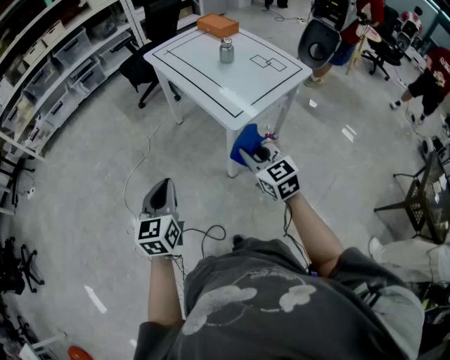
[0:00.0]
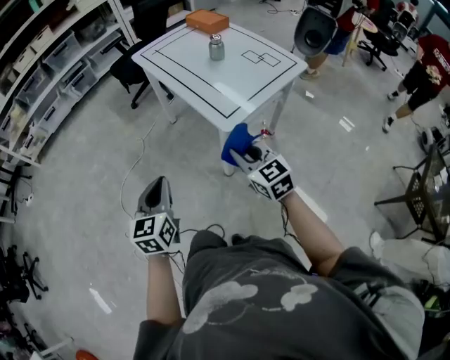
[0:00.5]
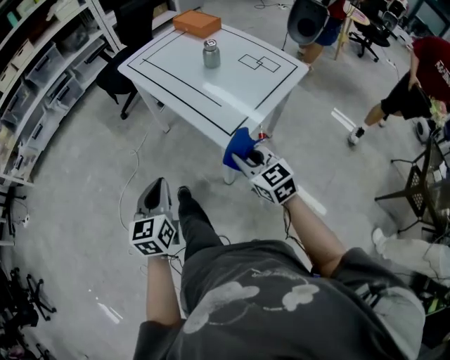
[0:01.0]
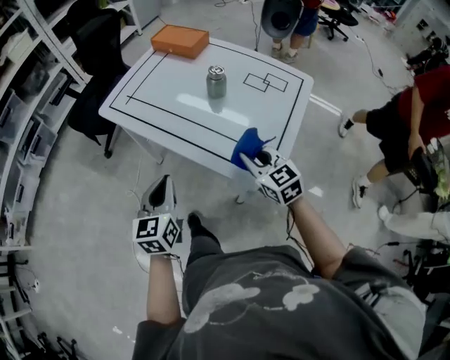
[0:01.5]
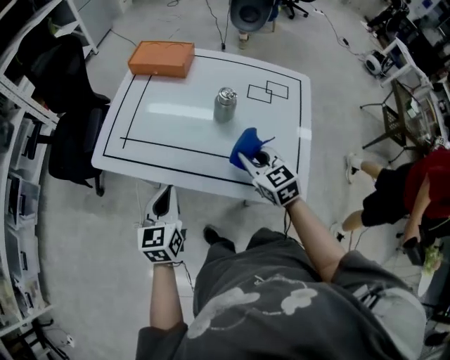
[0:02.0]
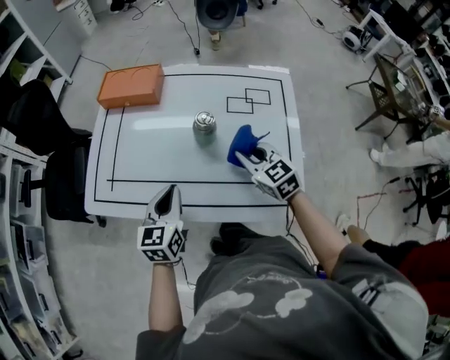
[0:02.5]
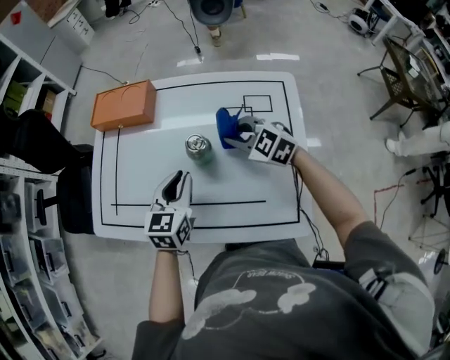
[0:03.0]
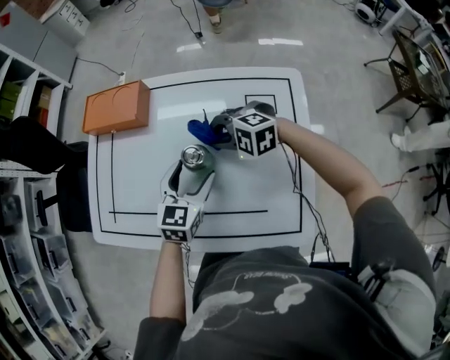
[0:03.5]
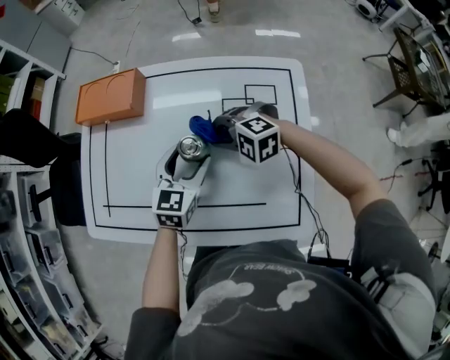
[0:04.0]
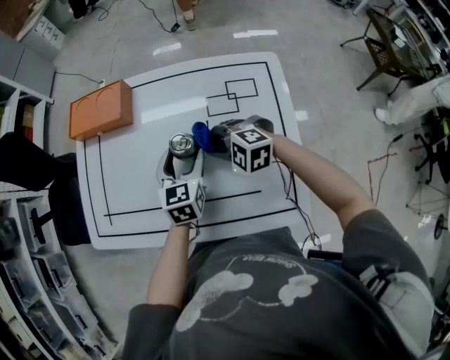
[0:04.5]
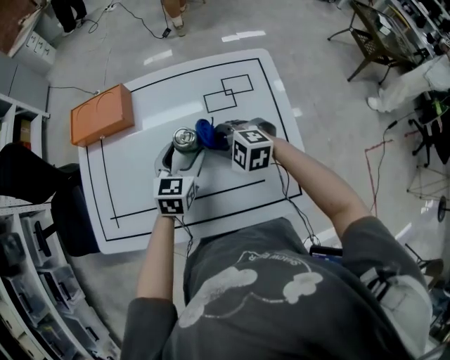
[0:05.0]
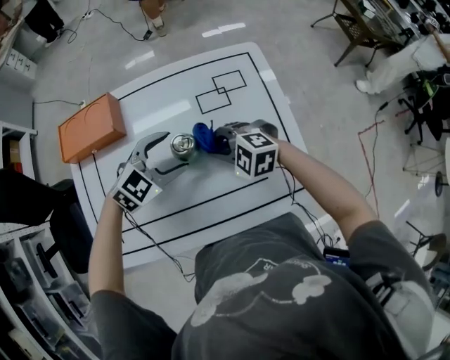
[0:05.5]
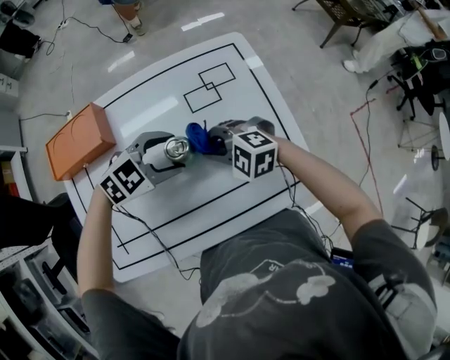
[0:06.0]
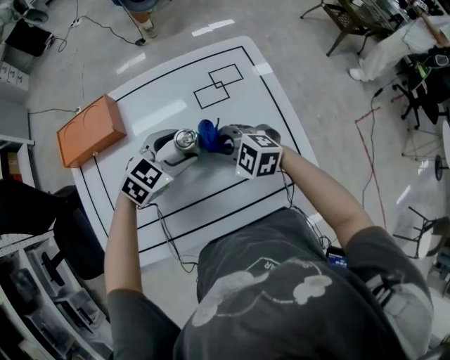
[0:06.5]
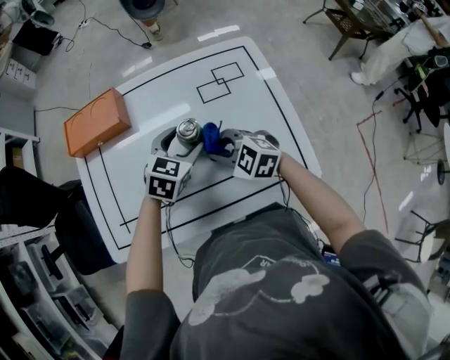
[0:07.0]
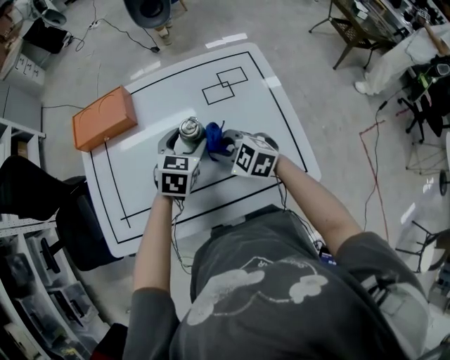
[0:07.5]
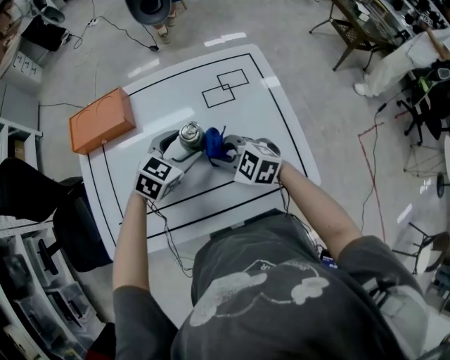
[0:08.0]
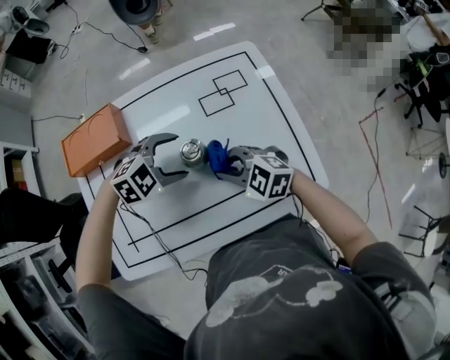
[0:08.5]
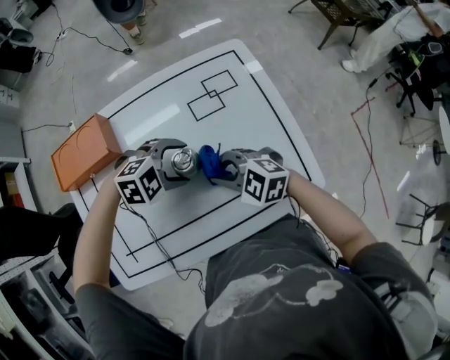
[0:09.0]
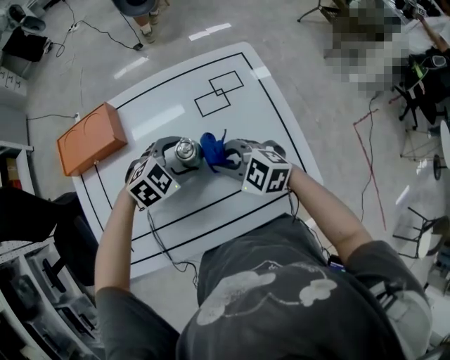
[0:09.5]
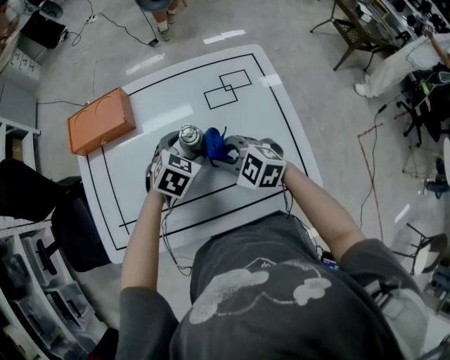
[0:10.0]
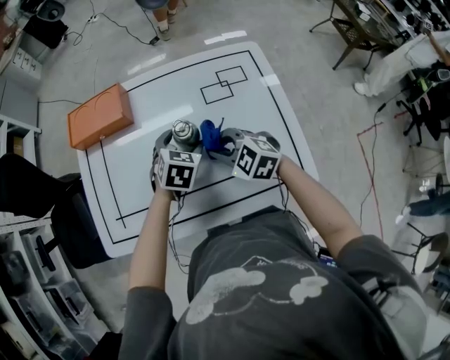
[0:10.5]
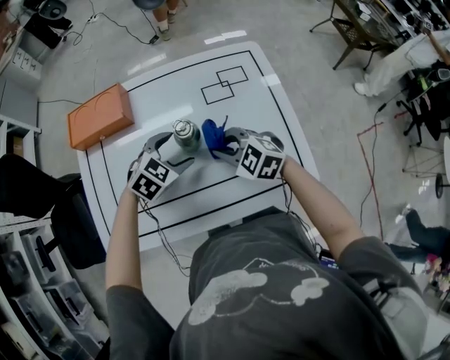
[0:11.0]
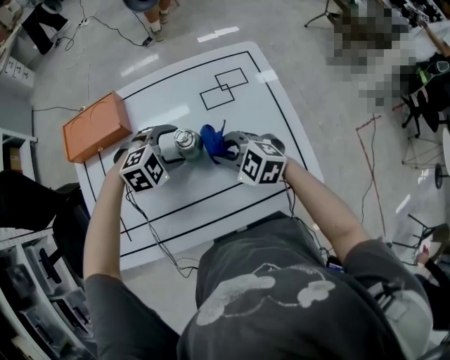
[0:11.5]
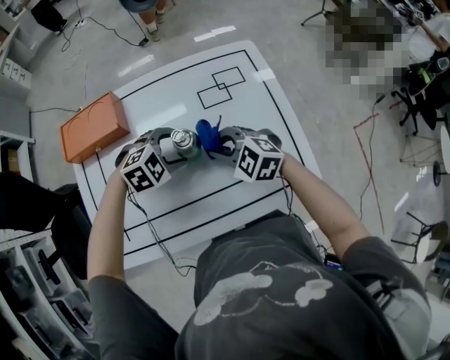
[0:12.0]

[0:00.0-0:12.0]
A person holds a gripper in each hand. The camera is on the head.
0:00.0 to 0:02.0: Both grippers are carried roughly 50 cm. The right gripper changes its angle by some 40 degrees, while the left gripper turns by about 40 degrees.
0:02.0 to 0:04.0: The left gripper heads to the right and forward, covering approximately 30 cm, turns by roughly 30 degrees, and opens, while the right gripper travels forward by approximately 15 cm, and rolls counterclockwise, seen from behind, by roughly 50 degrees.
0:04.0 to 0:06.0: The right gripper rotates approximately 30 degrees. The left gripper swivels about 70 degrees.
0:06.0 to 0:08.0: The left gripper rotates approximately 30 degrees, while the right gripper shifts by about 5 cm.
0:10.0 to 0:12.0: The left gripper turns by roughly 40 degrees.

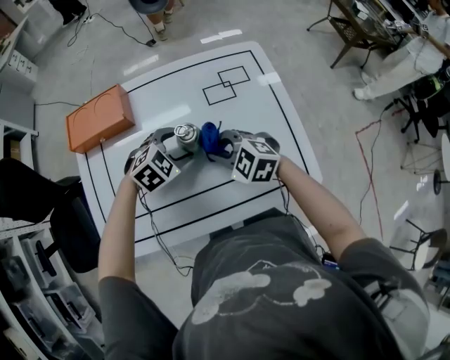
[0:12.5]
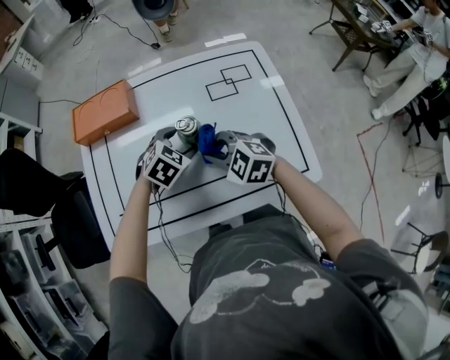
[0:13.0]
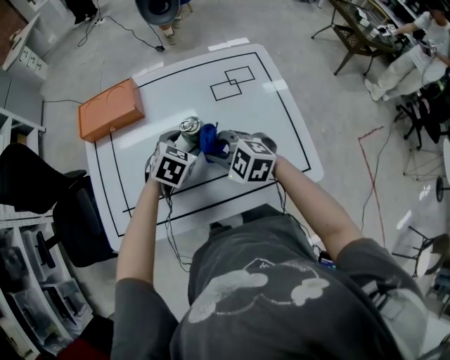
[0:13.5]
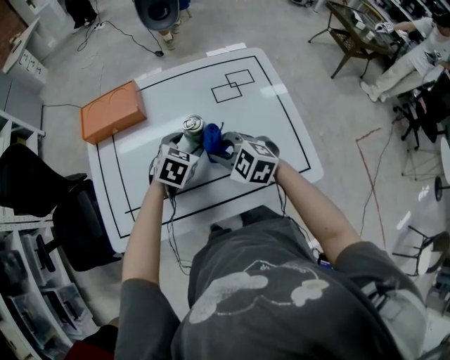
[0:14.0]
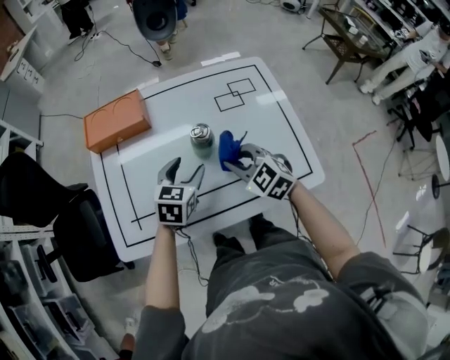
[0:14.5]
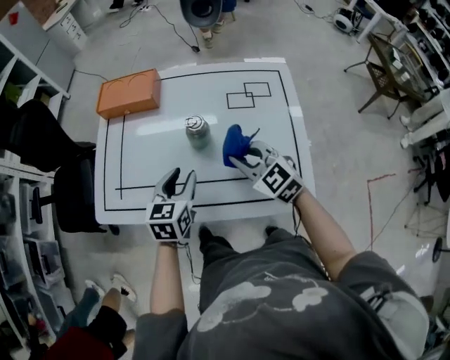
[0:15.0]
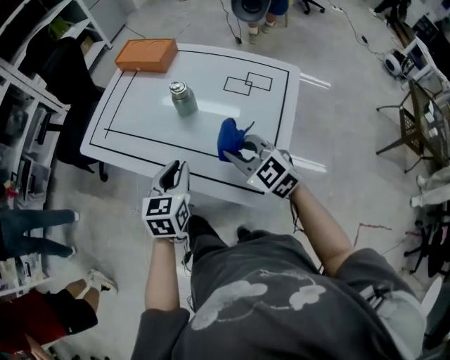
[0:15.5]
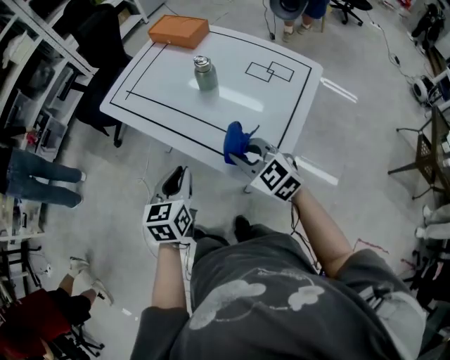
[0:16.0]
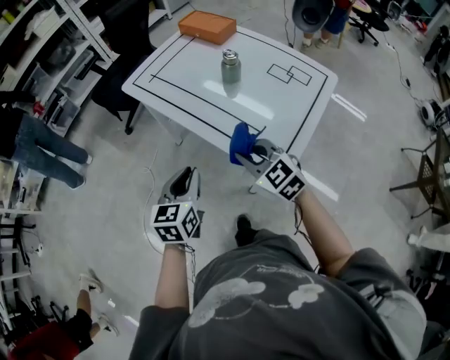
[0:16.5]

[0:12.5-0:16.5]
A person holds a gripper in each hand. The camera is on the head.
0:12.5 to 0:14.5: The right gripper ends up about 5 cm from where it was. The left gripper is displaced to the left and backward by some 10 cm, and swivels approximately 50 degrees.
0:14.5 to 0:16.5: The right gripper changes place by roughly 25 cm, and rotates approximately 50 degrees; the left gripper shifts by roughly 35 cm, rotates roughly 60 degrees, and closes its fingers.

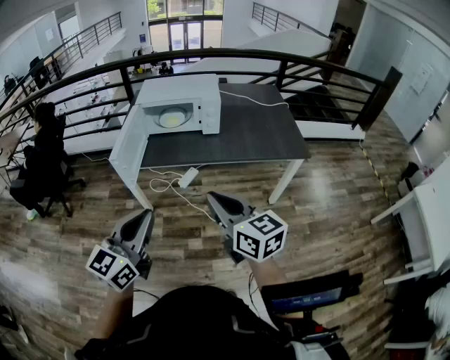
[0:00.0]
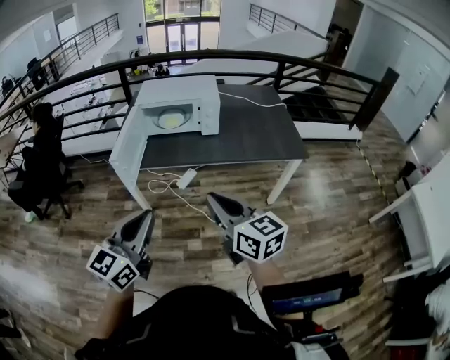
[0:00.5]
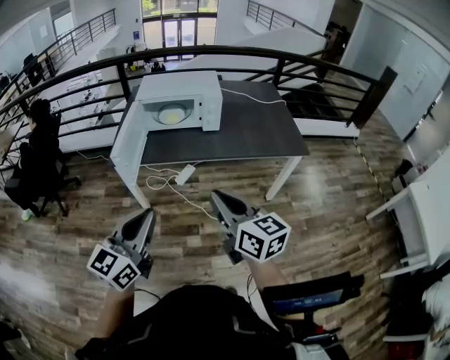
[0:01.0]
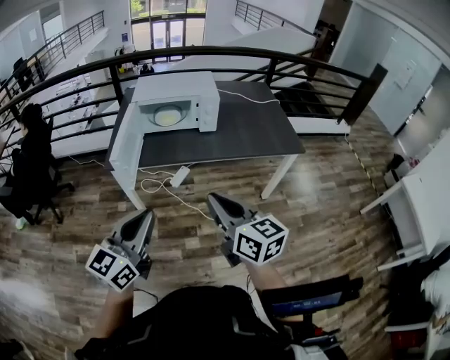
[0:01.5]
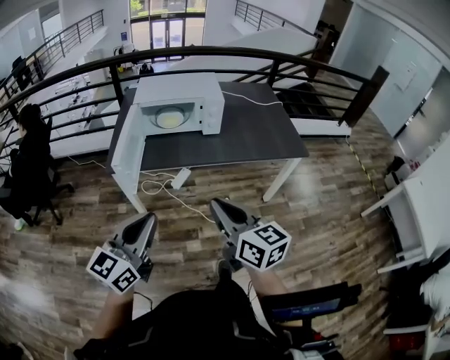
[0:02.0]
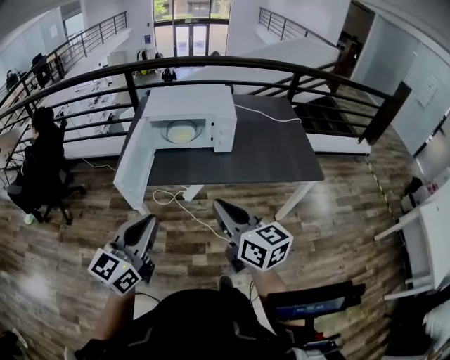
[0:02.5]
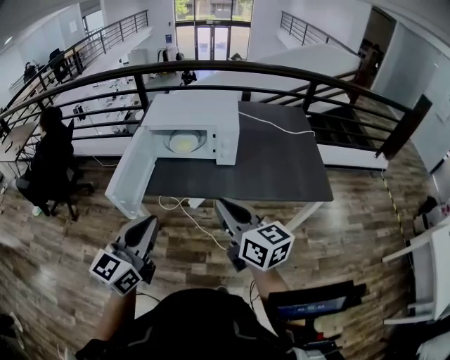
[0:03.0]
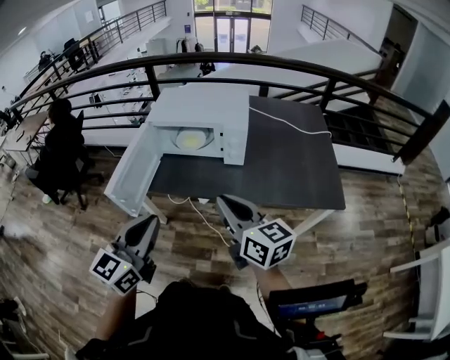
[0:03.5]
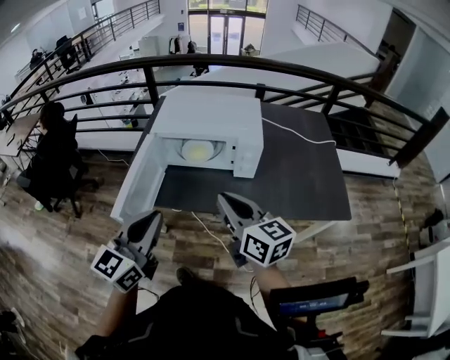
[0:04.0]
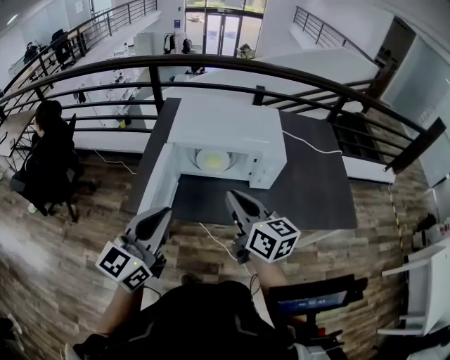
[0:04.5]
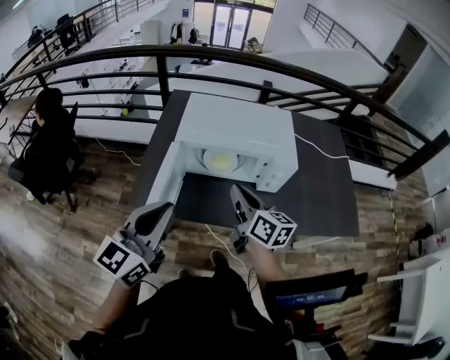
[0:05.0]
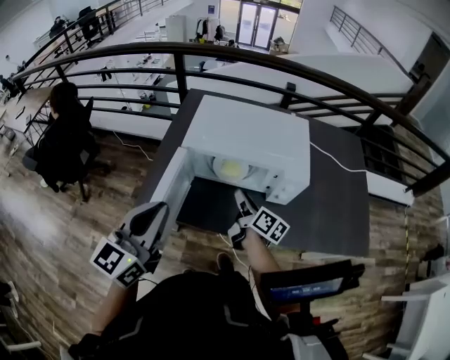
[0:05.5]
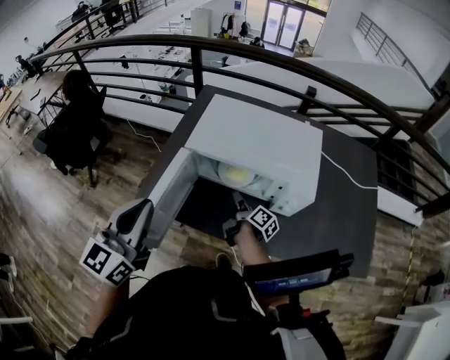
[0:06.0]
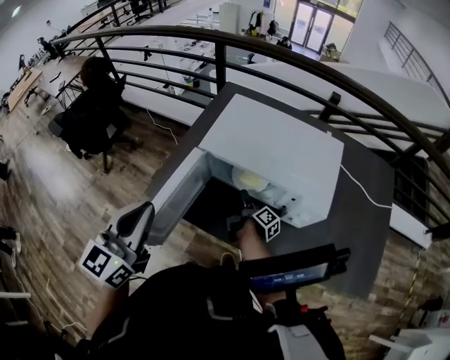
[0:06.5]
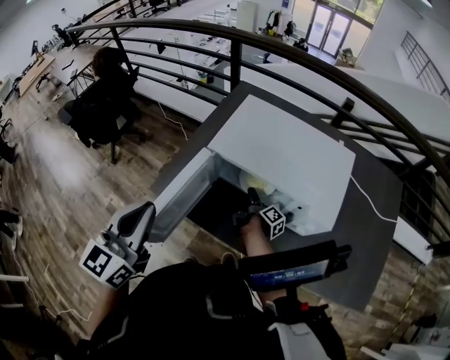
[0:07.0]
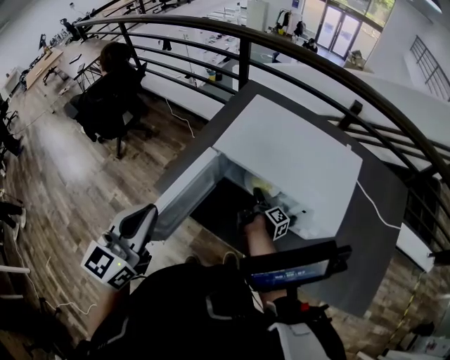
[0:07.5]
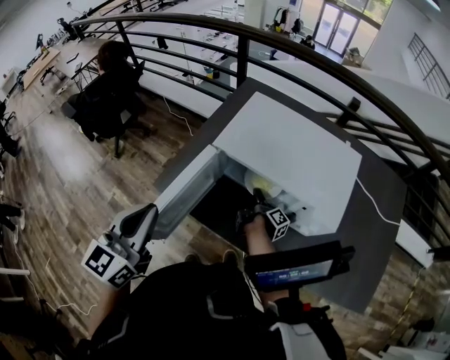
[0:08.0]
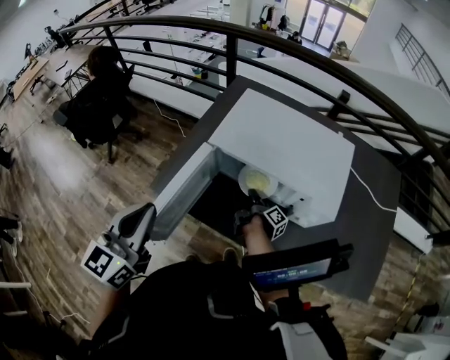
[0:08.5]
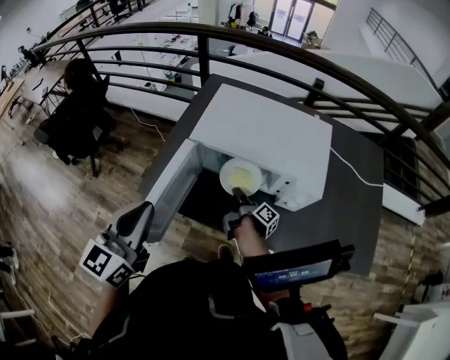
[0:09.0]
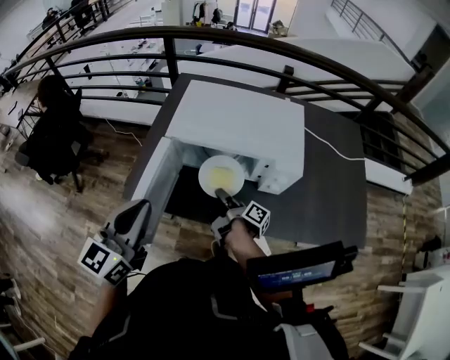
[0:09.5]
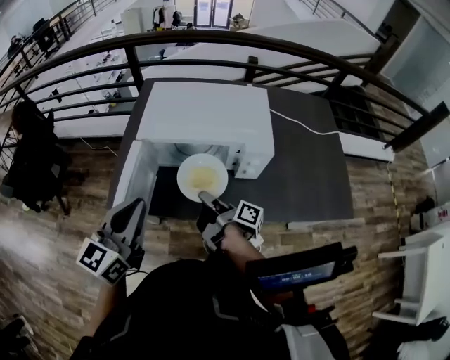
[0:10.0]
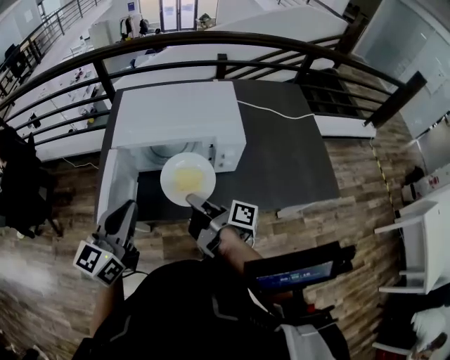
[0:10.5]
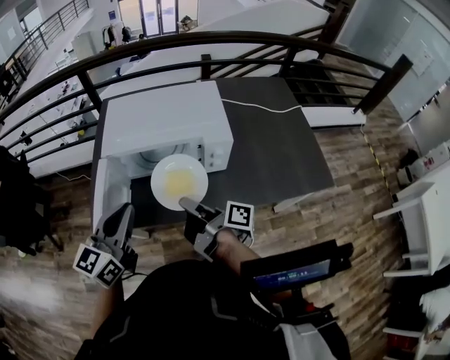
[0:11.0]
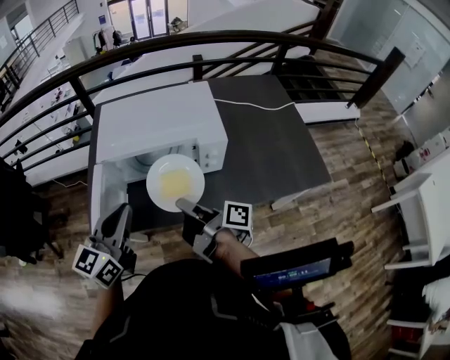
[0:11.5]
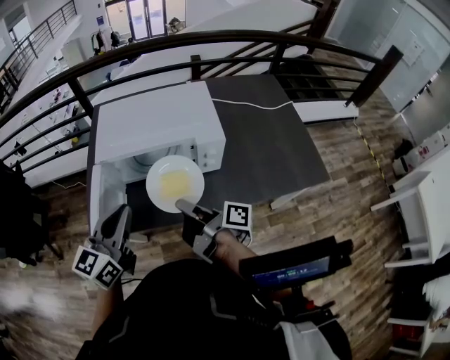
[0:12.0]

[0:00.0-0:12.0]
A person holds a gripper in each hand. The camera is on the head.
0:00.0 to 0:02.0: Both grippers travel together to the left, about 5 cm.
0:02.0 to 0:04.0: The two grippers go roughly 30 cm forward.
0:04.0 to 0:06.0: The left gripper moves forward and to the left, approximately 20 cm; the right gripper travels forward and downward by approximately 40 cm, rotates around the line of its fingers by about 60 degrees, clockwise from behind, and opens up.
0:06.0 to 0:08.0: The right gripper is displaced downward and forward by approximately 10 cm, swivels about 20 degrees, and closes.
0:08.0 to 0:10.0: The right gripper goes some 20 cm backward and upward, and closes up, while the left gripper goes roughly 10 cm to the right, and changes its angle by roughly 30 degrees.
0:10.0 to 0:12.0: The left gripper ends up approximately 5 cm from where it was; the right gripper travels upward by approximately 5 cm.
